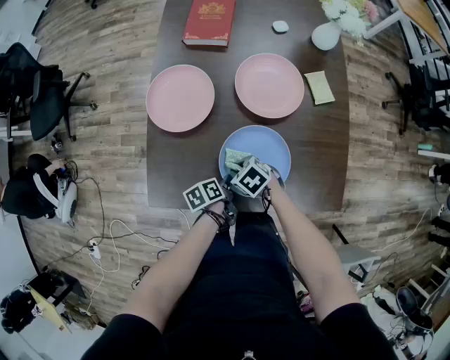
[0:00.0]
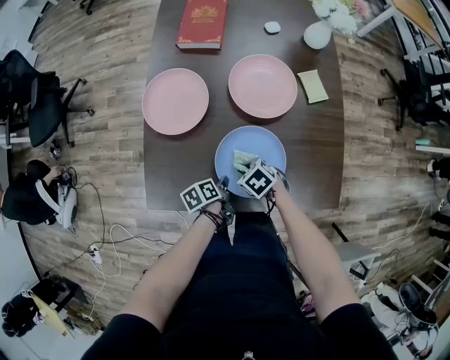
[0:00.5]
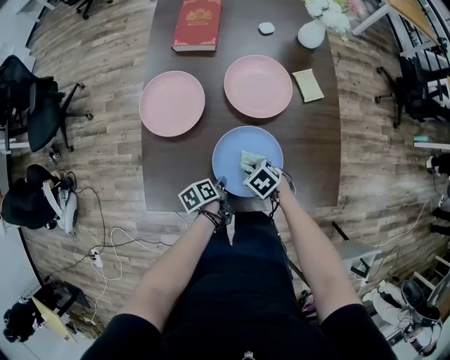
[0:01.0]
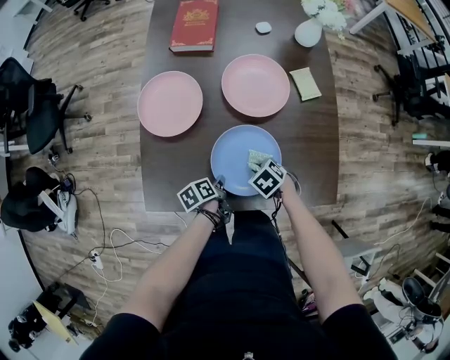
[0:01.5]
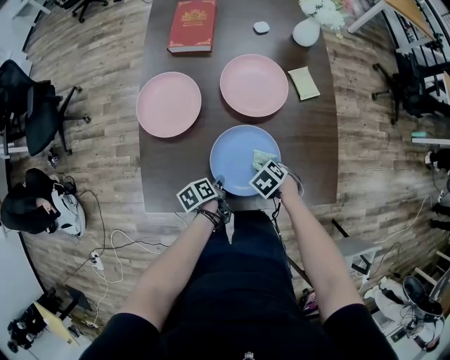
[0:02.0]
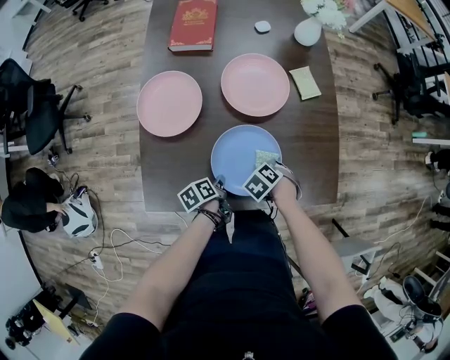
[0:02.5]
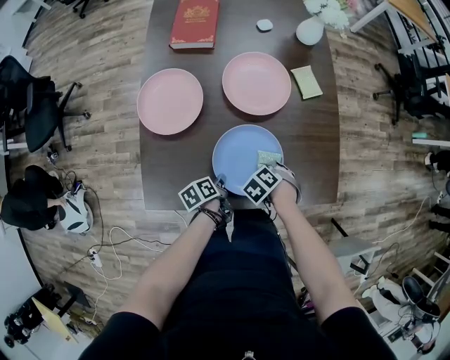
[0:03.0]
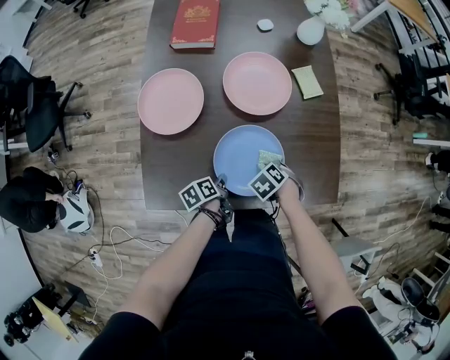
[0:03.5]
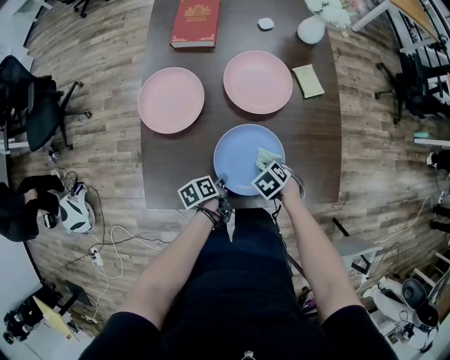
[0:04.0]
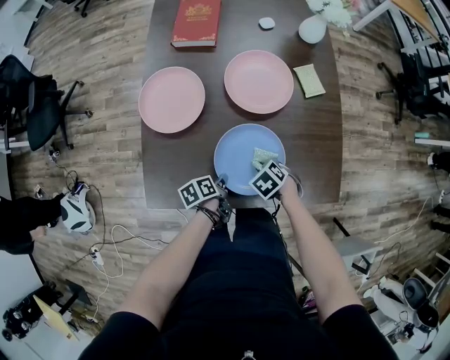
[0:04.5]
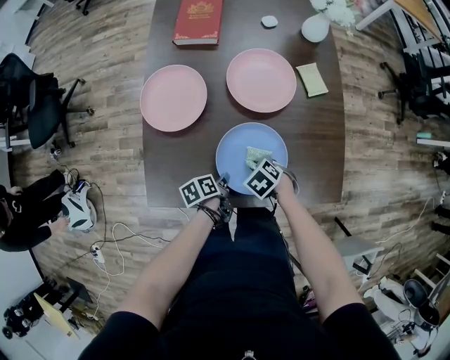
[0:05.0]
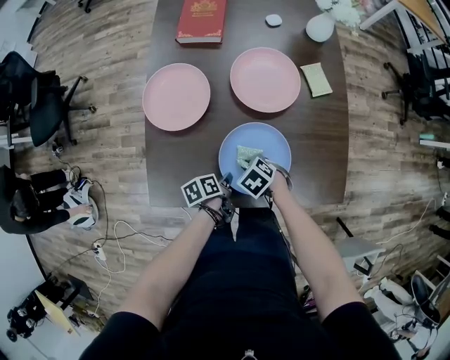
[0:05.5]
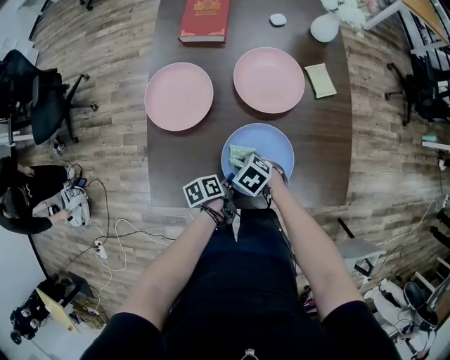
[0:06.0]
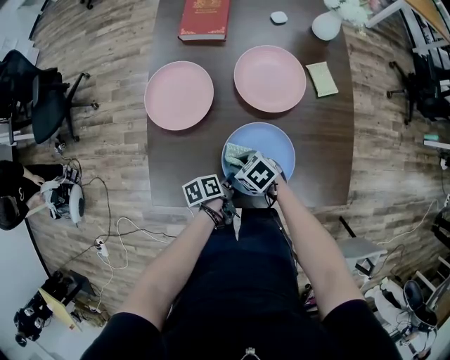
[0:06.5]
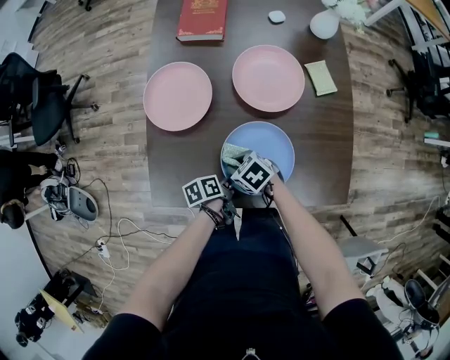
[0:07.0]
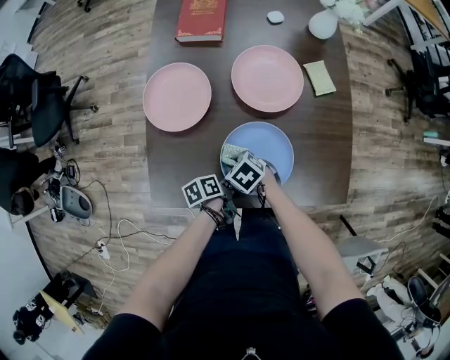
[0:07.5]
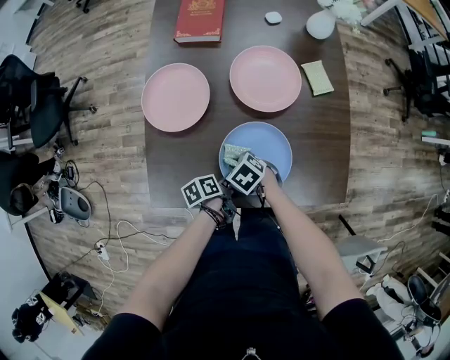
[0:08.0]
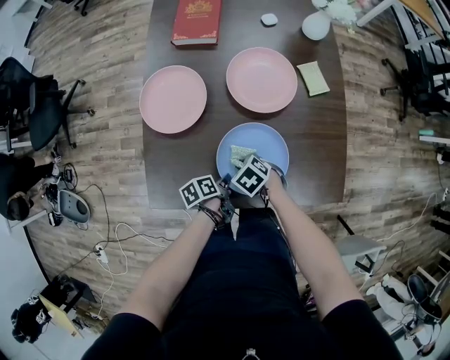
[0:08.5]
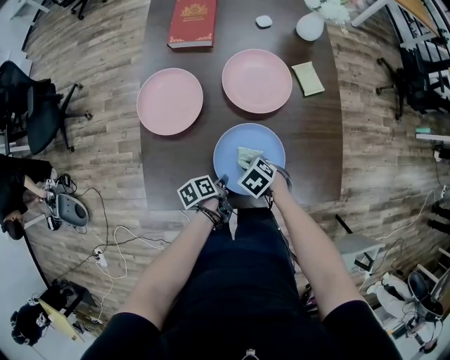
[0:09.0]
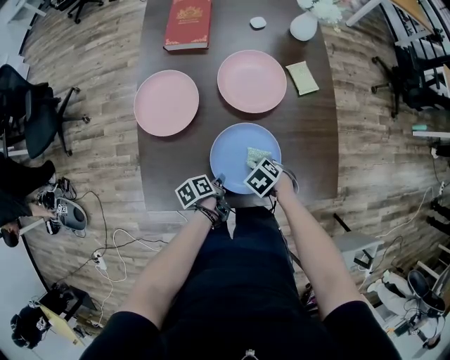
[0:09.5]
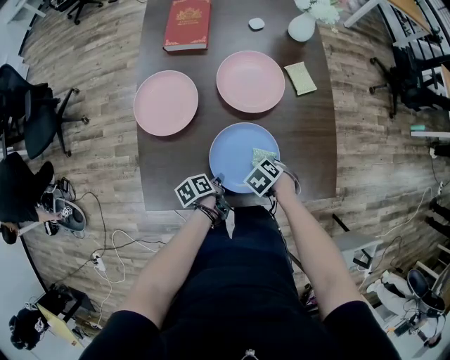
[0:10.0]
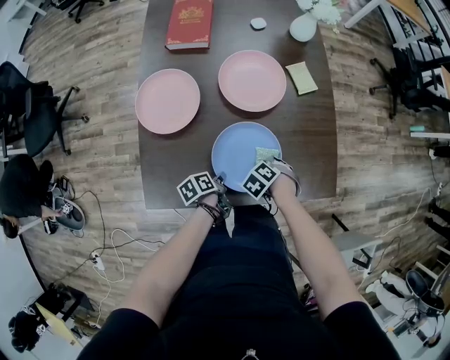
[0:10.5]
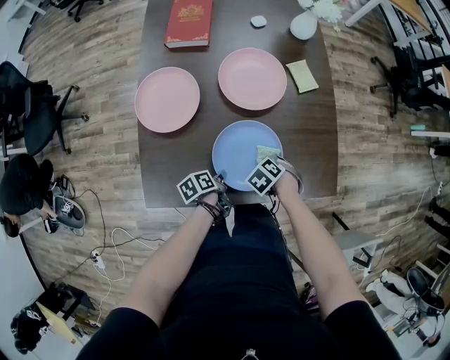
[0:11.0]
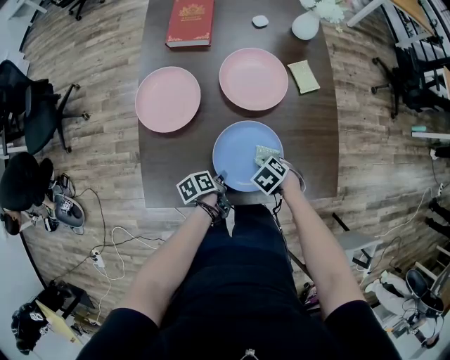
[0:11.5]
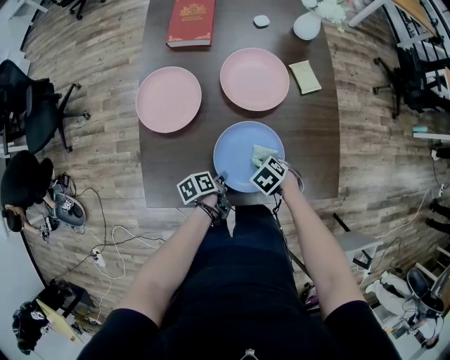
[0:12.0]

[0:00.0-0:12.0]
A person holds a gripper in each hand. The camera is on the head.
0:00.0 to 0:02.0: The right gripper ends up about 15 cm from where it was.
0:04.0 to 0:06.0: The right gripper shifts by about 10 cm.
0:08.0 to 0:10.0: The right gripper moves some 15 cm, and rotates approximately 20 degrees.

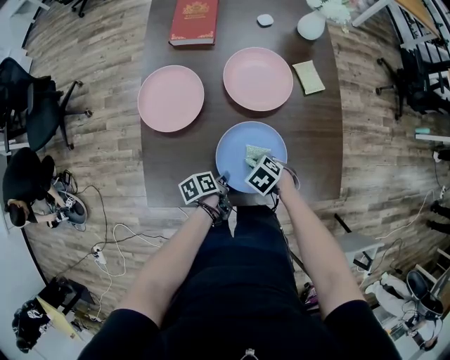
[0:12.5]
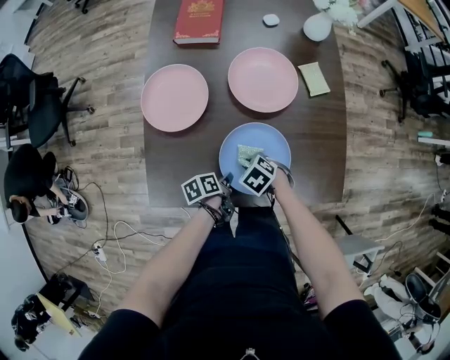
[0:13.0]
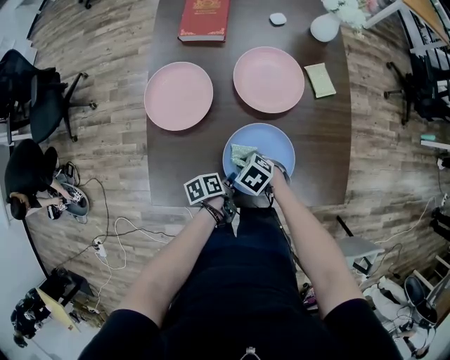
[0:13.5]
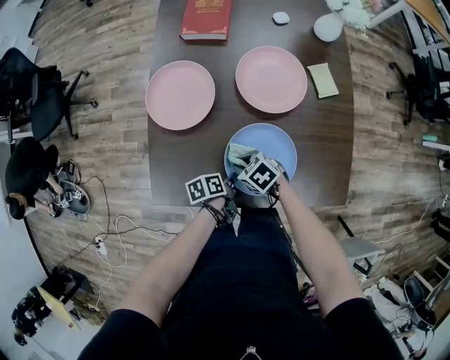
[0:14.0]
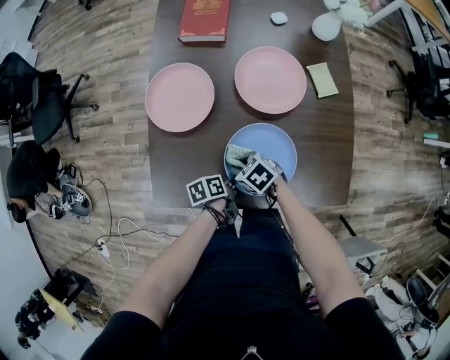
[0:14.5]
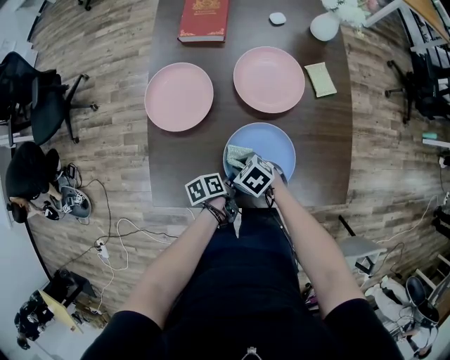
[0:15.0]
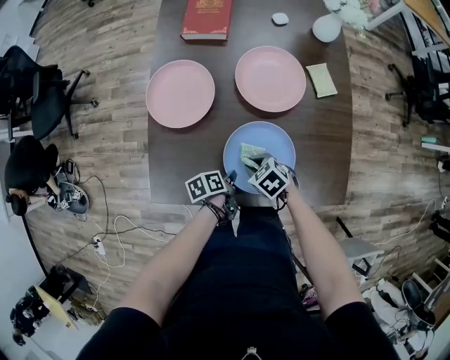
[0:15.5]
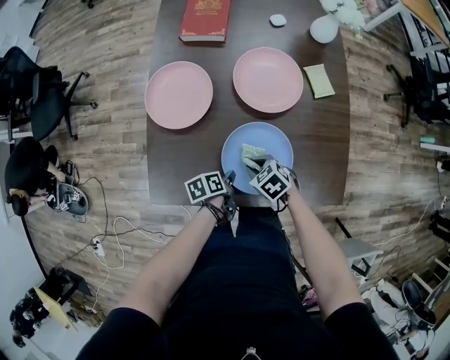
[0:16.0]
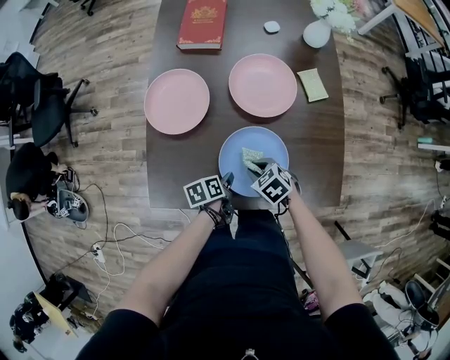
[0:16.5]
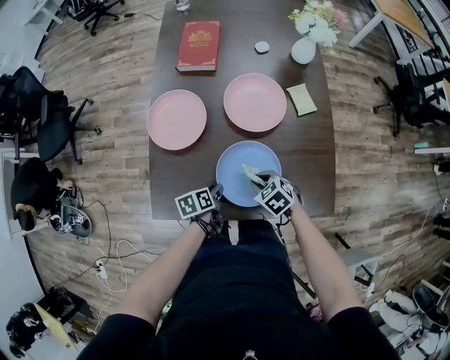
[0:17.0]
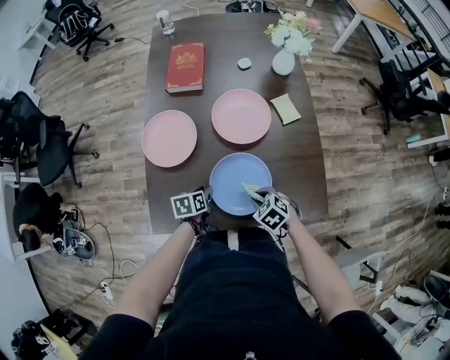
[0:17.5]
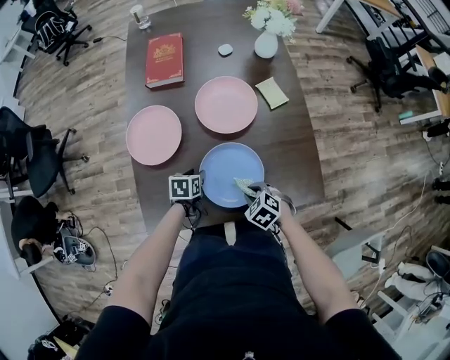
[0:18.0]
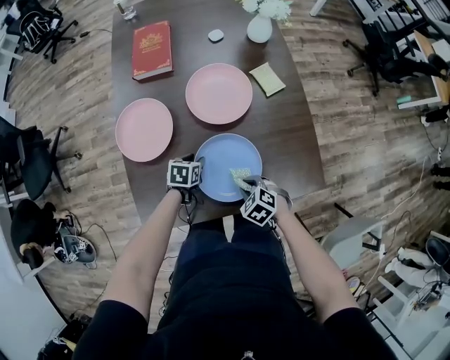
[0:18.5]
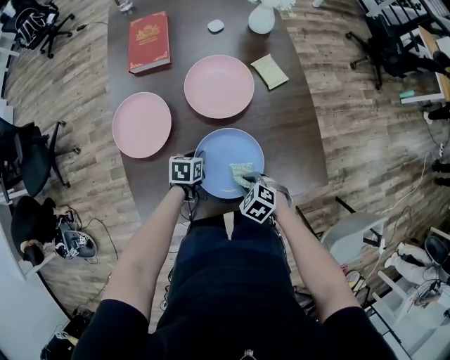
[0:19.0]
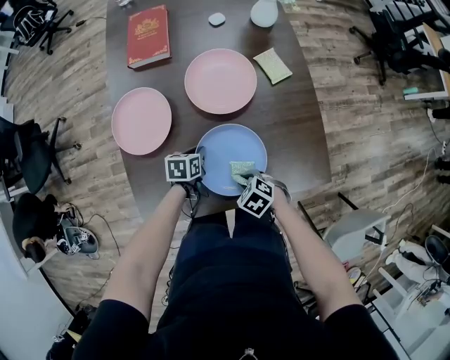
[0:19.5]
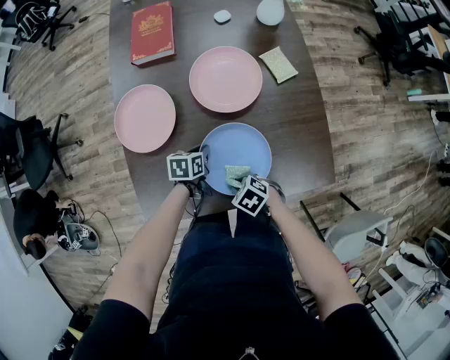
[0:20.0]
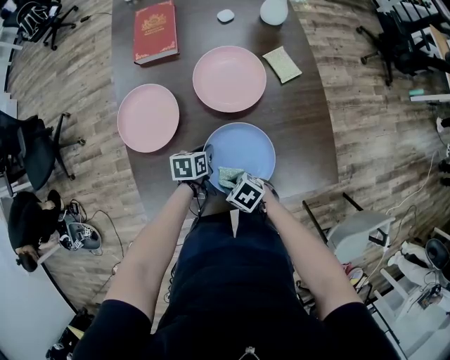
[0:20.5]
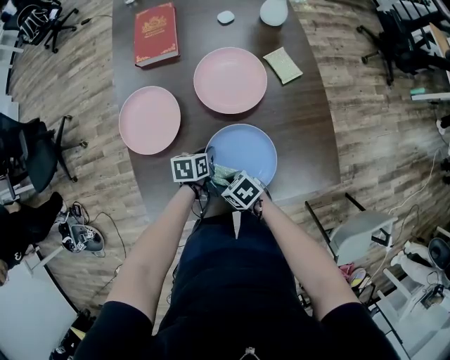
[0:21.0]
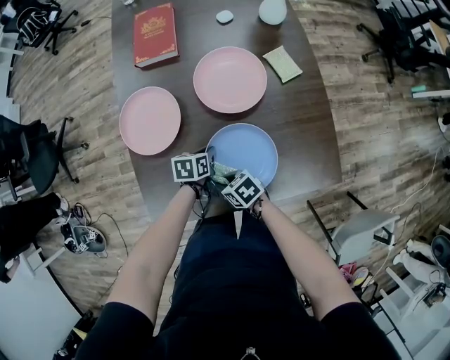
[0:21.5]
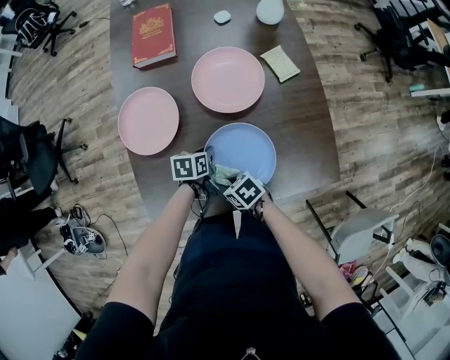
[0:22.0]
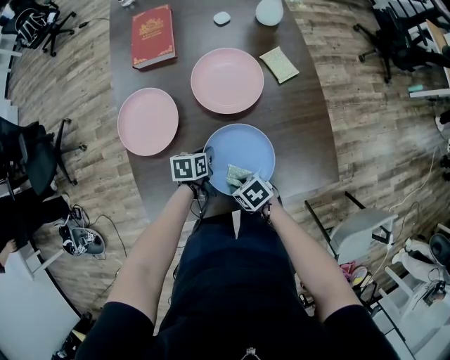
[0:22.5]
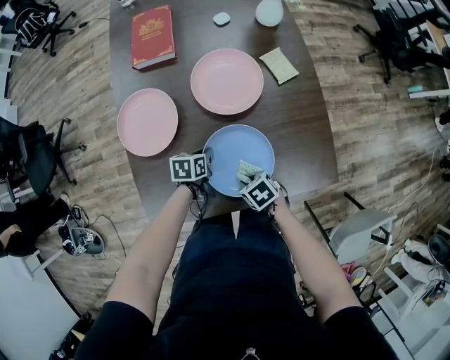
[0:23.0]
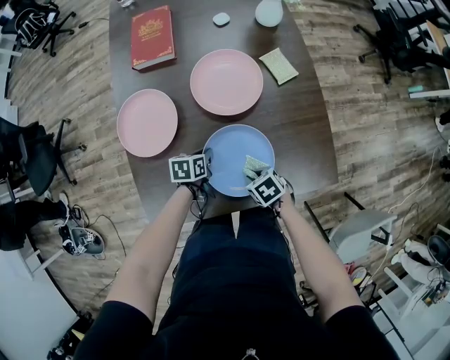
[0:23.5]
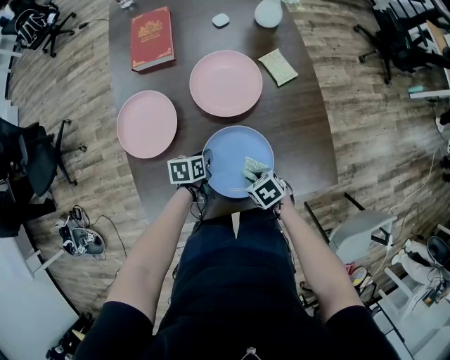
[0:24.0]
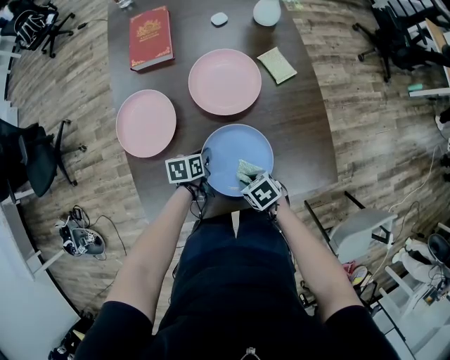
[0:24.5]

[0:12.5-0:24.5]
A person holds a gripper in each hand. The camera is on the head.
0:12.5 to 0:14.5: The right gripper shifts by roughly 10 cm.
0:14.5 to 0:16.5: The right gripper moves roughly 10 cm.
0:16.5 to 0:18.5: The right gripper shifts by some 5 cm.
0:18.5 to 0:20.5: The right gripper shifts by some 10 cm, and rotates some 30 degrees.

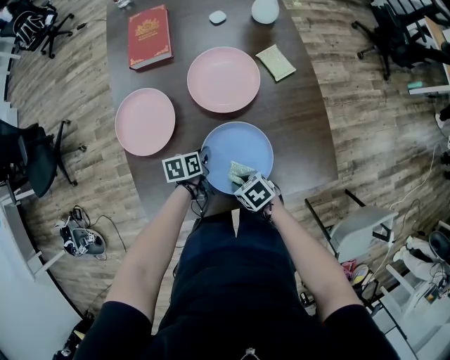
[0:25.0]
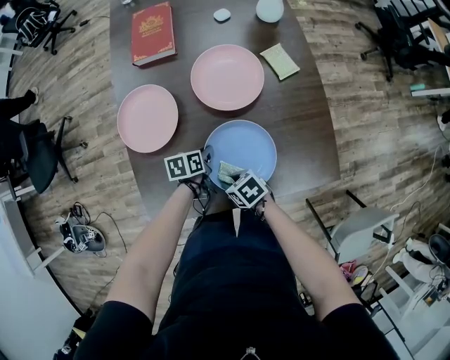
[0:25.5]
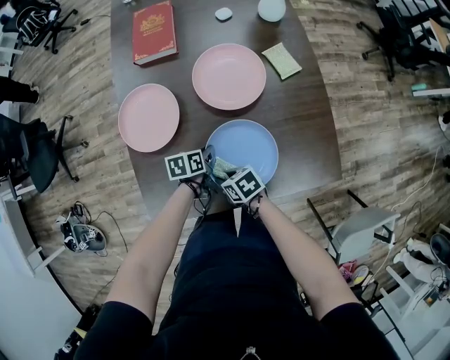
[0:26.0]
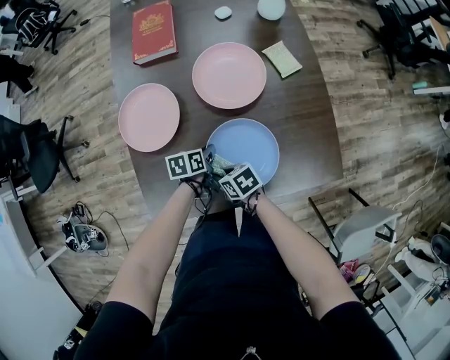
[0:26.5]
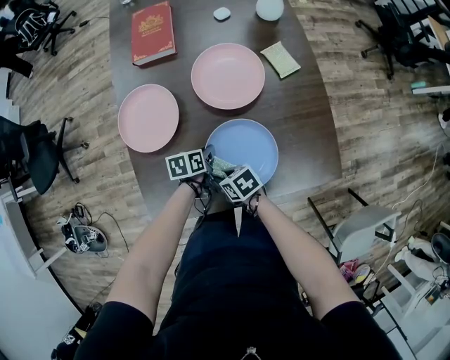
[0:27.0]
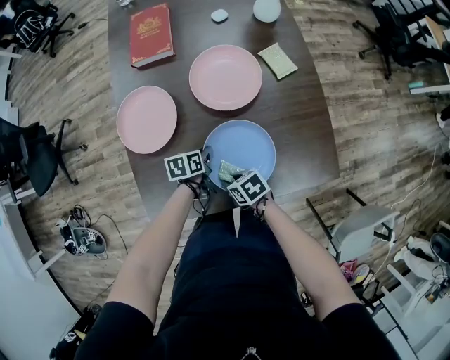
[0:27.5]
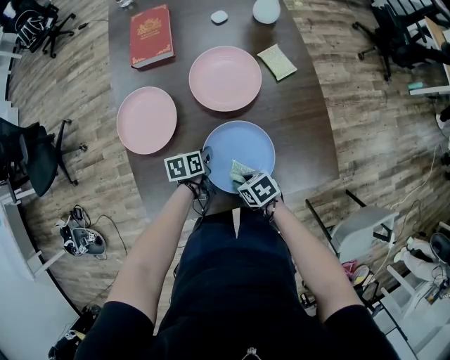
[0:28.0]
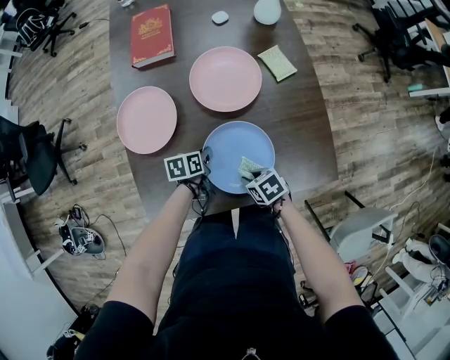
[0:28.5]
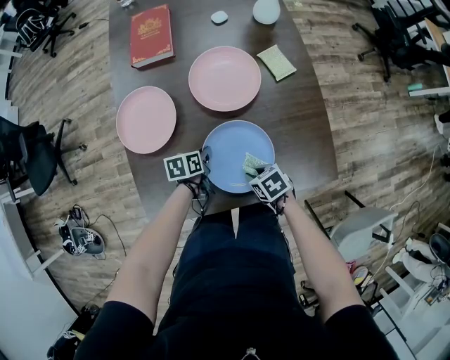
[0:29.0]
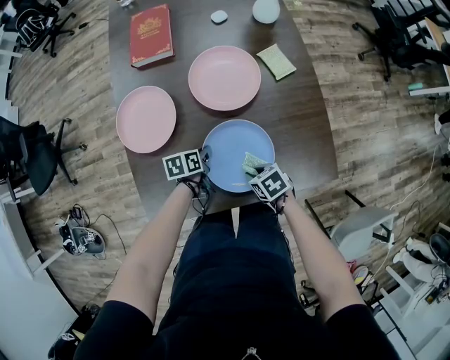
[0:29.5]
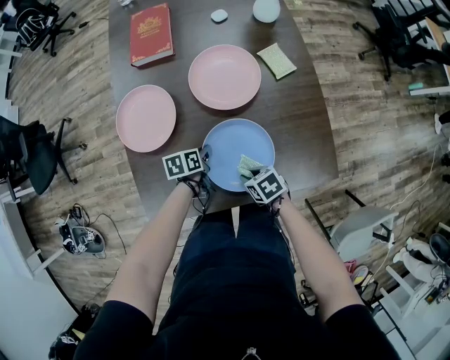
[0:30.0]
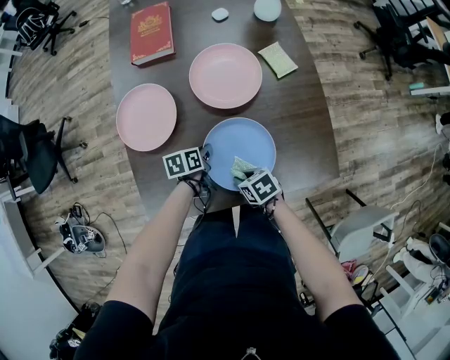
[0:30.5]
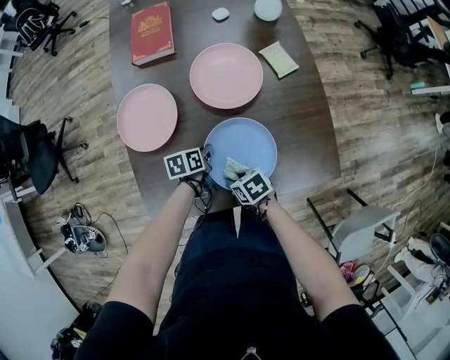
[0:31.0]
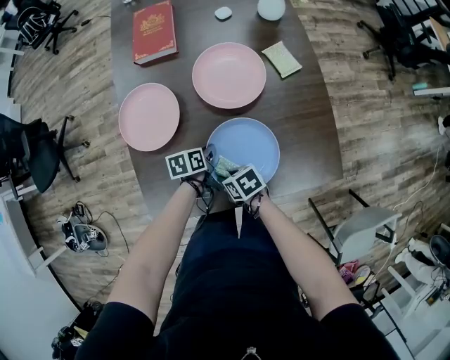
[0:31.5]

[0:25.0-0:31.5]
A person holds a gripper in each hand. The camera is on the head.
0:25.0 to 0:27.0: The right gripper shifts by approximately 5 cm.
0:27.0 to 0:29.5: The right gripper changes place by about 10 cm.
0:29.5 to 0:31.5: The right gripper ends up roughly 10 cm from where it was.
